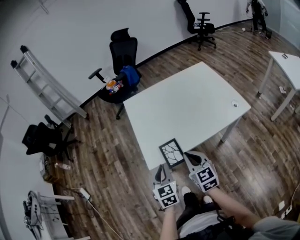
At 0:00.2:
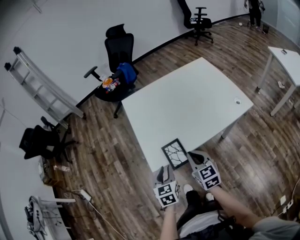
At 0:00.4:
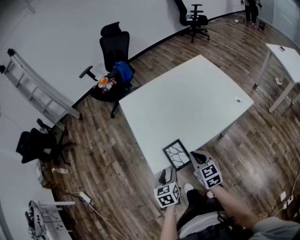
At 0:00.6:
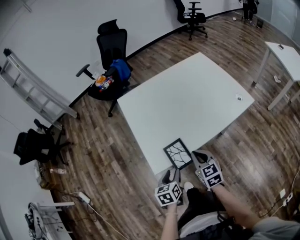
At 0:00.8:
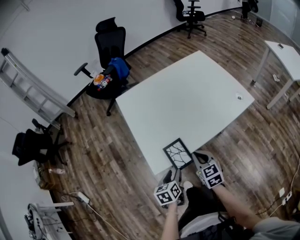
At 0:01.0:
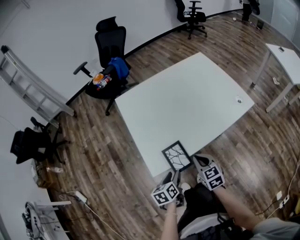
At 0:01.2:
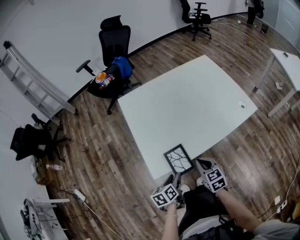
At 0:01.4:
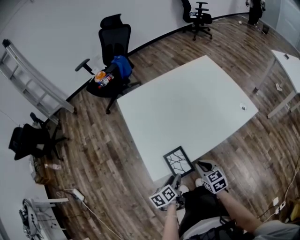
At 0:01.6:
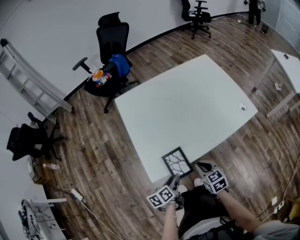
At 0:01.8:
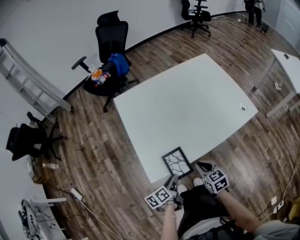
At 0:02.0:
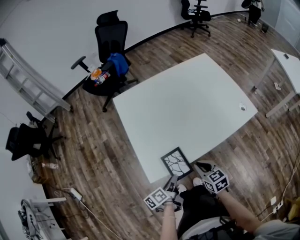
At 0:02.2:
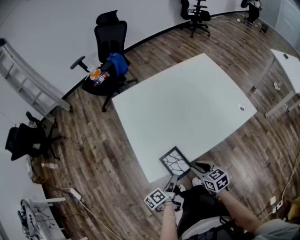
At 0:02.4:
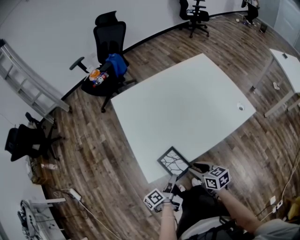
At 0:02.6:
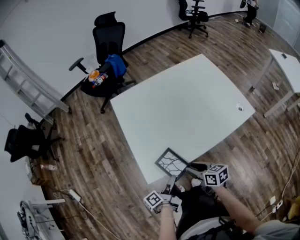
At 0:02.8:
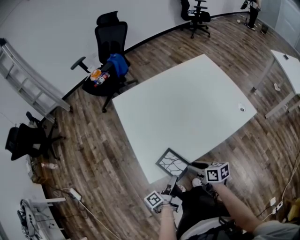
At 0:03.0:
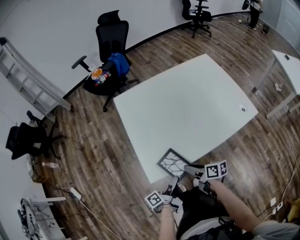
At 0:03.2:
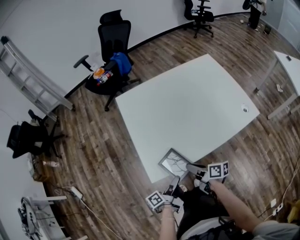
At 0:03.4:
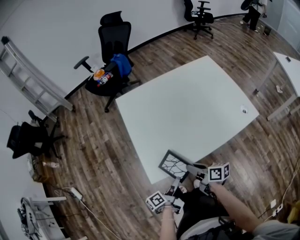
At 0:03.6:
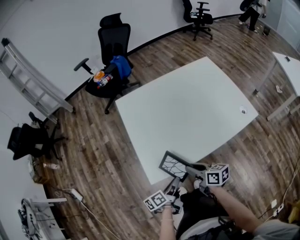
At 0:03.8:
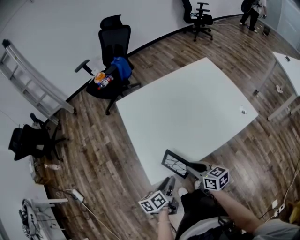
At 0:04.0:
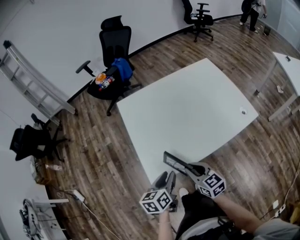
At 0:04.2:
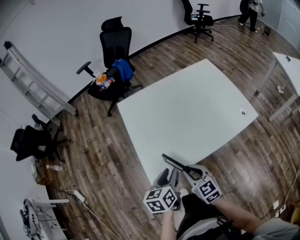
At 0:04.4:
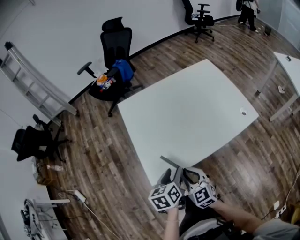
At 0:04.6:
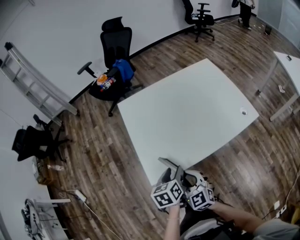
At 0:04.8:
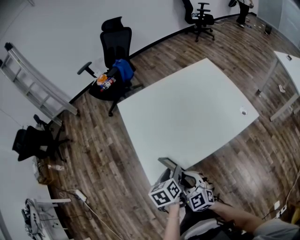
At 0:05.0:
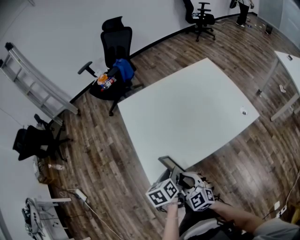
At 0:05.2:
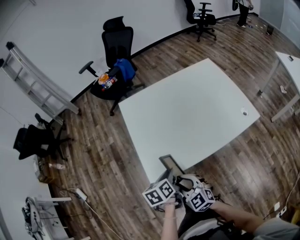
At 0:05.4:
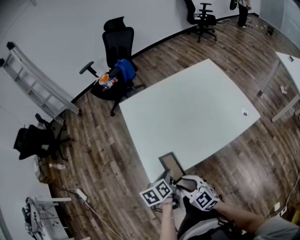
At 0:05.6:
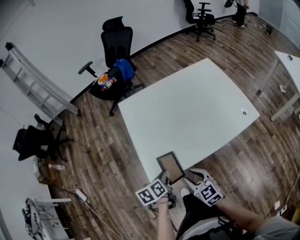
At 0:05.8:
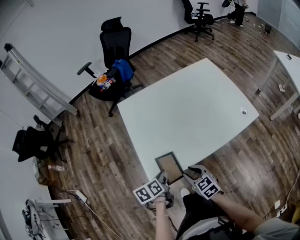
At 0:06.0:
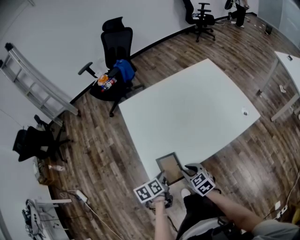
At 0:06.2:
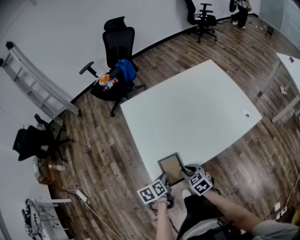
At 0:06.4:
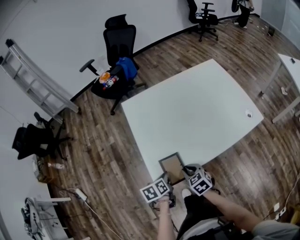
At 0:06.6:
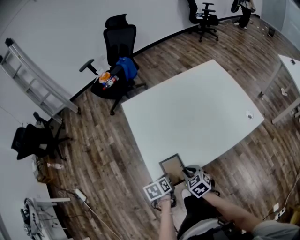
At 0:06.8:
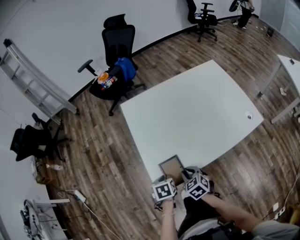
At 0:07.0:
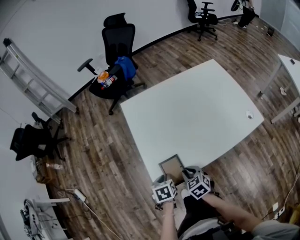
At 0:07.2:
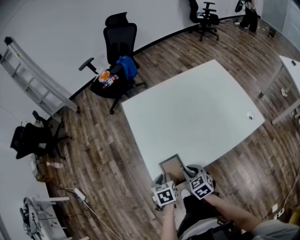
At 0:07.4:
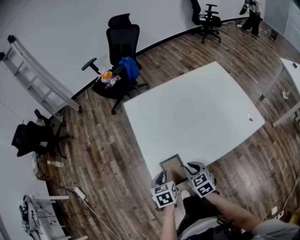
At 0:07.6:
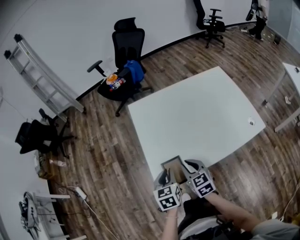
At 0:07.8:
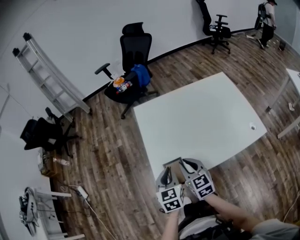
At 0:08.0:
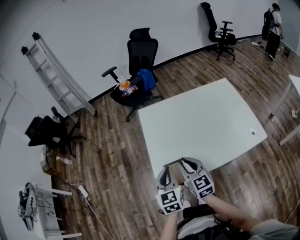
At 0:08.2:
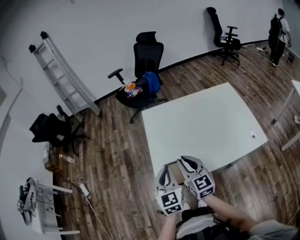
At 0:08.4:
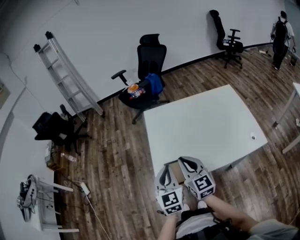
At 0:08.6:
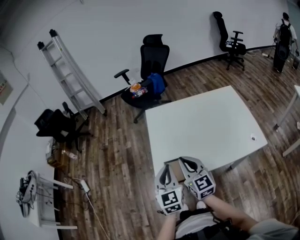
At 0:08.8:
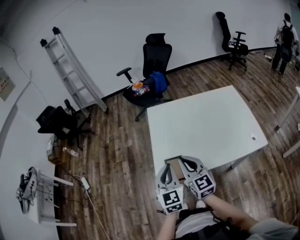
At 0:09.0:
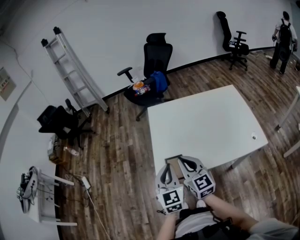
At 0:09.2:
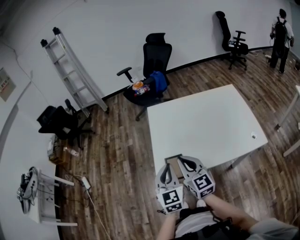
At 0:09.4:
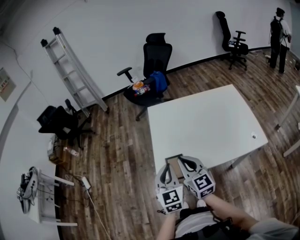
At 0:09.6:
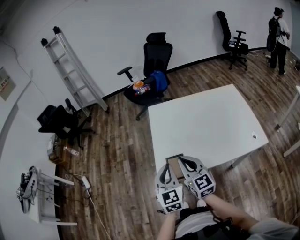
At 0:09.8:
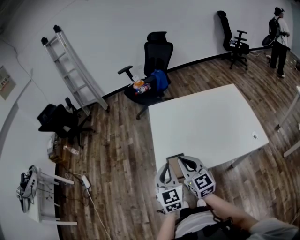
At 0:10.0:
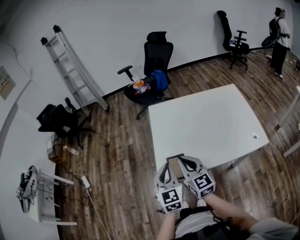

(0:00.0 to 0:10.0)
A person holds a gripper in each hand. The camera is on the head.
0:00.0 - 0:01.4: Both grippers move downward, about 15 cm. The left gripper rolls counterclockwise, seen from behind, by about 50 degrees, and opens. Meanwhile the right gripper swivels approximately 20 degrees.
0:01.4 - 0:02.8: The right gripper changes its angle by about 40 degrees, and opens its fingers, while the left gripper points its fingers approximately 30 degrees further upward, and closes.
0:02.8 - 0:04.2: The right gripper goes about 10 cm upward, and rotates around the line of its fingers by about 40 degrees, counterclockwise from behind. The left gripper is displaced upward and forward by approximately 10 cm, and rolls clockwise, seen from behind, by approximately 60 degrees.
0:04.2 - 0:05.8: The two grippers go about 5 cm downward. The left gripper rotates some 20 degrees.
0:05.8 - 0:07.2: The left gripper shifts by about 5 cm, and rotates some 30 degrees; the right gripper heads forward, covering some 5 cm.
0:07.2 - 0:08.6: Both grippers travel together upward, about 20 cm. The right gripper tips its fingers upward by some 40 degrees. Meanwhile the left gripper tips its fingers upward by about 50 degrees.
0:08.6 - 0:10.0: The grippers make only small movements.

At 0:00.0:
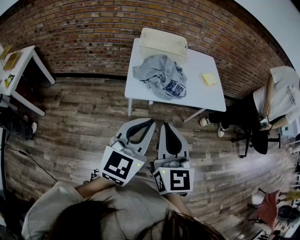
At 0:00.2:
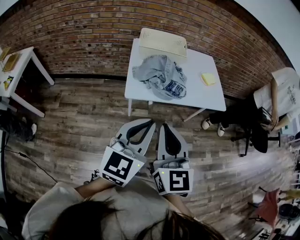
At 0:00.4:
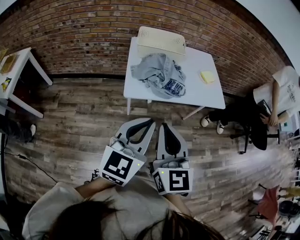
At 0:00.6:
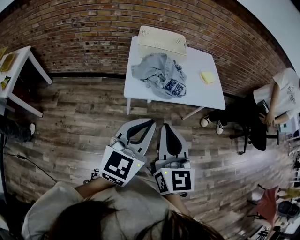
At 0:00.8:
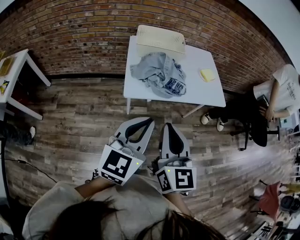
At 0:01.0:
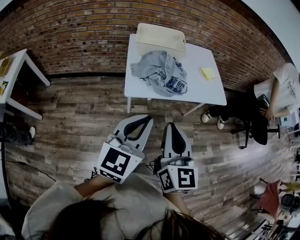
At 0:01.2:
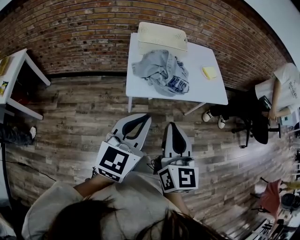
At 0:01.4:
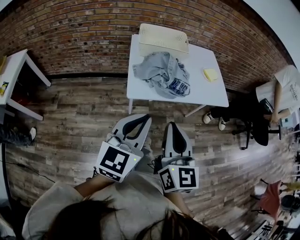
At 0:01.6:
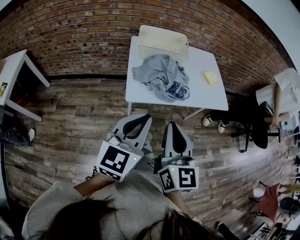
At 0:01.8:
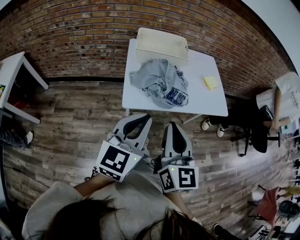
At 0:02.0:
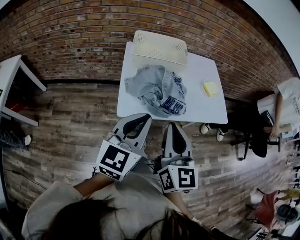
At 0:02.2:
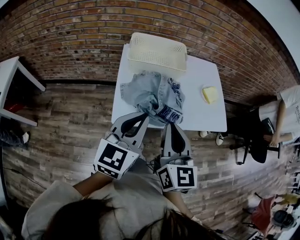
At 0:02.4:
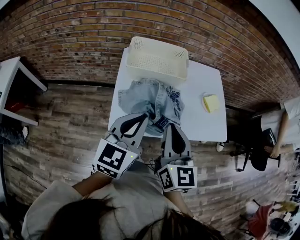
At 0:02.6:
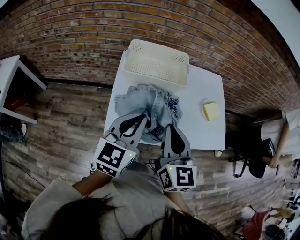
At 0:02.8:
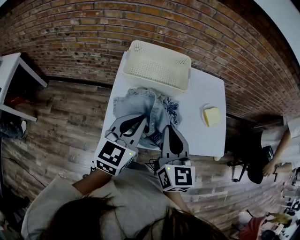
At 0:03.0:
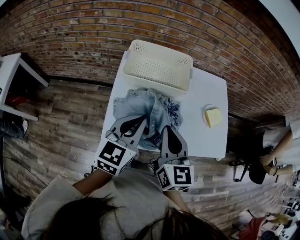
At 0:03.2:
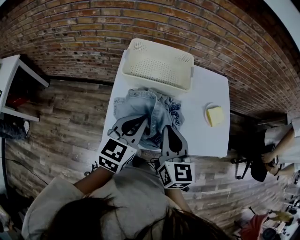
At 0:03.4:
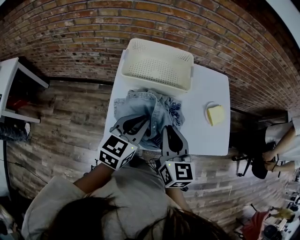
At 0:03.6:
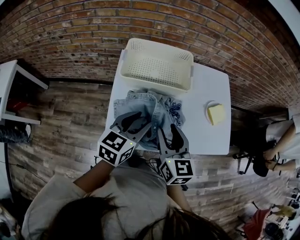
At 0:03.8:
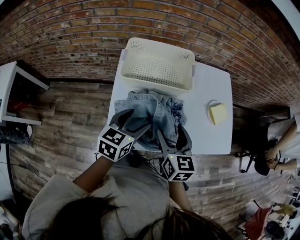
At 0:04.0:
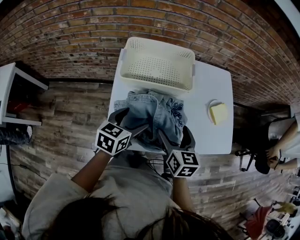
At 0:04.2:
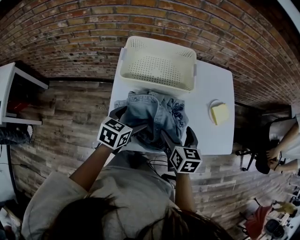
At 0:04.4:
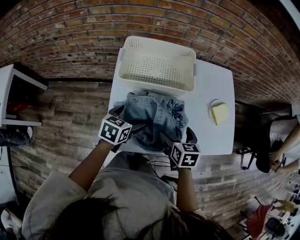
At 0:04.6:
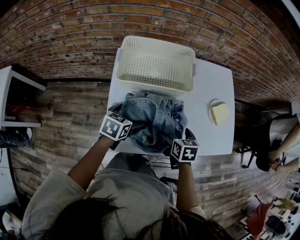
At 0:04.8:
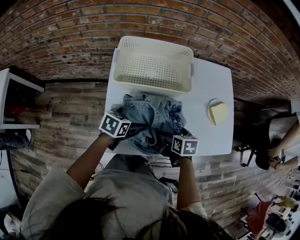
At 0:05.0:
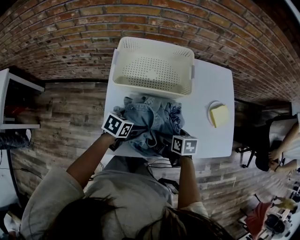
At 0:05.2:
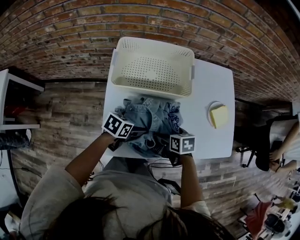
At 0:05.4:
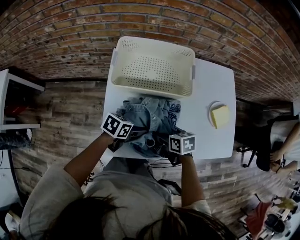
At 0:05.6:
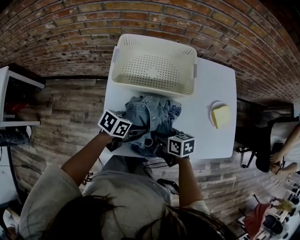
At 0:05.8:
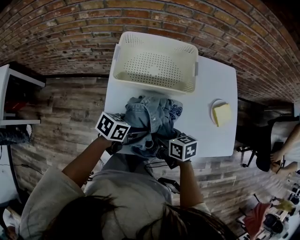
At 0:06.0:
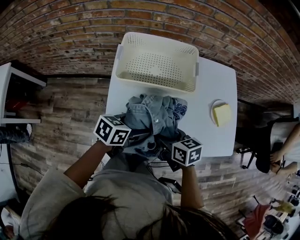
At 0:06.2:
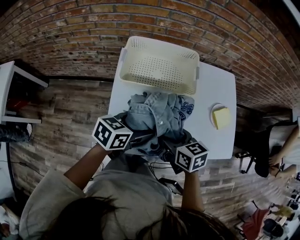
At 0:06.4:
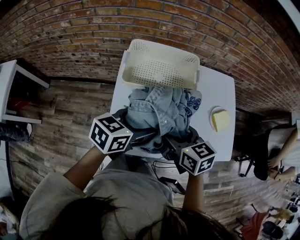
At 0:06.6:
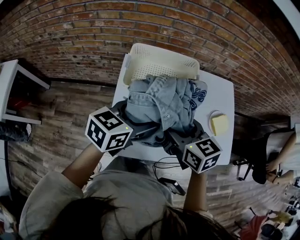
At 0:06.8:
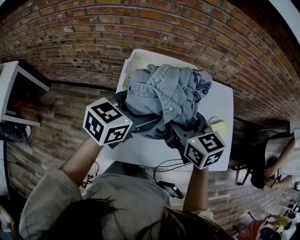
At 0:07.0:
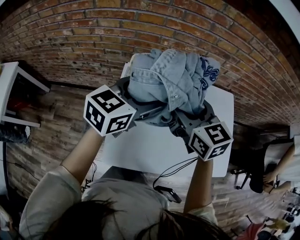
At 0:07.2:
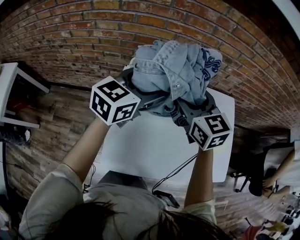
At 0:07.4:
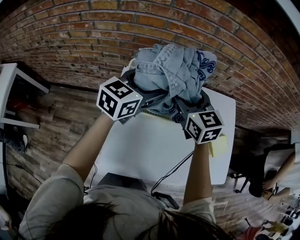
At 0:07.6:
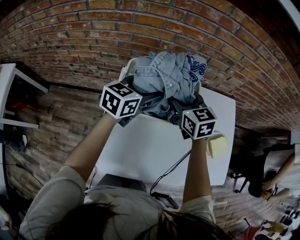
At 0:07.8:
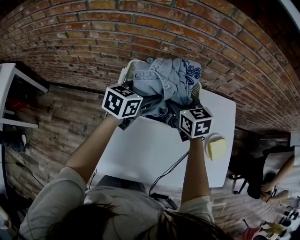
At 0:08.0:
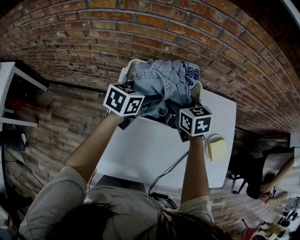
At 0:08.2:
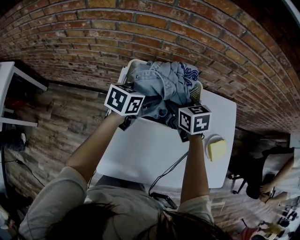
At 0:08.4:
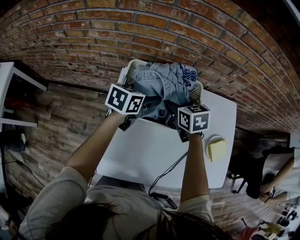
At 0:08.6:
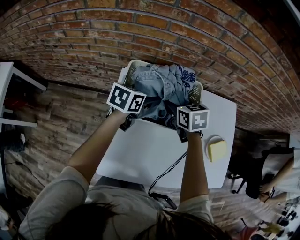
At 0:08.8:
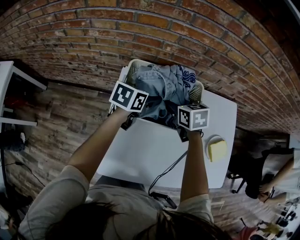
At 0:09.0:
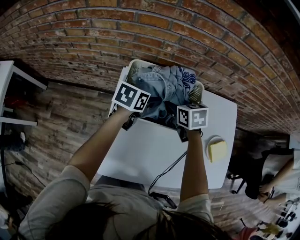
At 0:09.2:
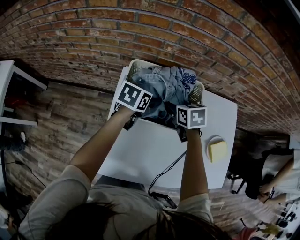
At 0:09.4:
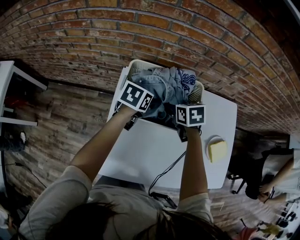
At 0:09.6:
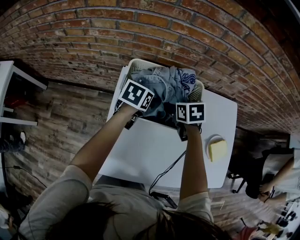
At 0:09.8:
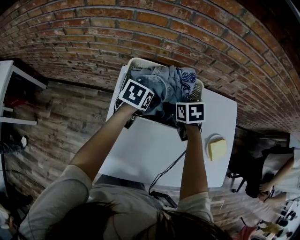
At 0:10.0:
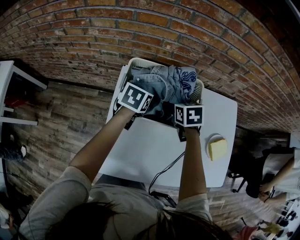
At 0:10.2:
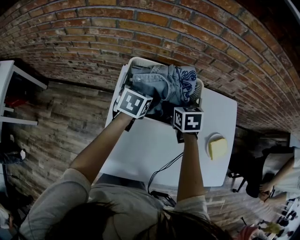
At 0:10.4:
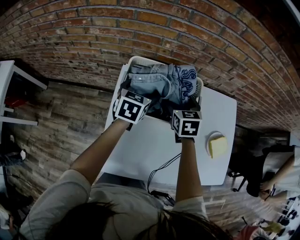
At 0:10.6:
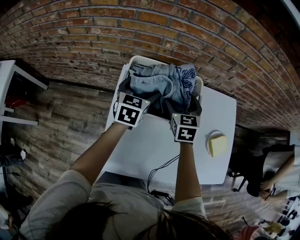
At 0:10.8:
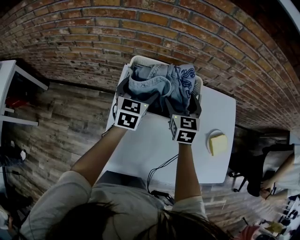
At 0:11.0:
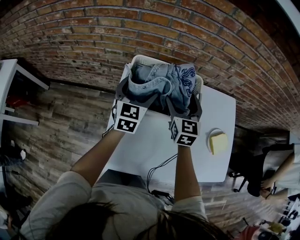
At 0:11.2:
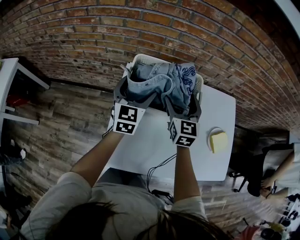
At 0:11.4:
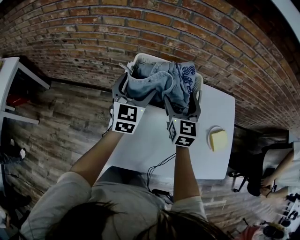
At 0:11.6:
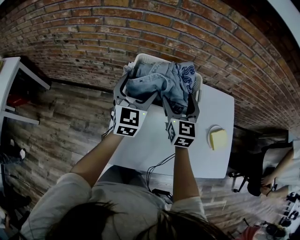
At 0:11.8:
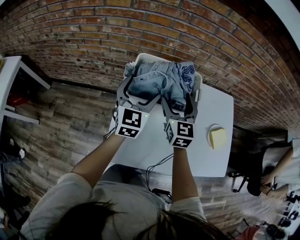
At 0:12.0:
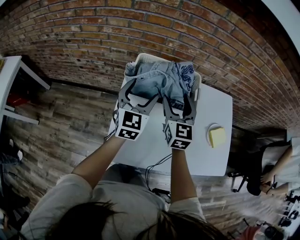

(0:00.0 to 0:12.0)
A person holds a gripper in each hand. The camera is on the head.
0:00.0 - 0:01.6: The right gripper changes place by about 5 cm, while the left gripper shifts some 5 cm forward and to the left.
0:01.6 - 0:03.0: The two grippers go about 30 cm forward.
0:03.0 - 0:04.4: The two grippers go roughly 20 cm downward. The left gripper swivels some 30 degrees, and opens; the right gripper tips its fingers downward by roughly 30 degrees, and opens up.
0:04.4 - 0:06.0: The left gripper travels downward and back again, about 5 cm each way, and swivels about 20 degrees; the right gripper moves about 10 cm downward and comes back, changes its angle by approximately 30 degrees, and closes.
0:06.0 - 0:07.6: The grippers both shift forward and upward by roughly 30 cm. The left gripper rotates about 30 degrees. Meanwhile the right gripper changes its angle by approximately 30 degrees.
0:07.6 - 0:09.0: Both grippers move downward, some 10 cm. The left gripper turns by some 20 degrees, while the right gripper swivels some 20 degrees.
0:09.0 - 0:10.4: The left gripper changes its angle by about 20 degrees.
0:10.4 - 0:12.0: The right gripper goes roughly 15 cm upward and backward, and changes its angle by about 30 degrees; the left gripper shifts roughly 15 cm backward and upward, and rotates some 30 degrees.

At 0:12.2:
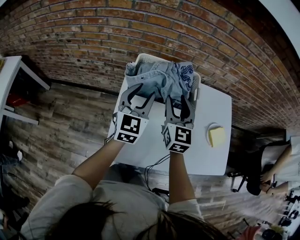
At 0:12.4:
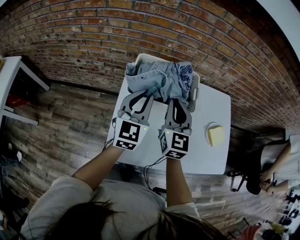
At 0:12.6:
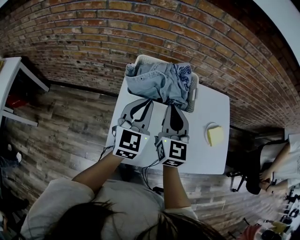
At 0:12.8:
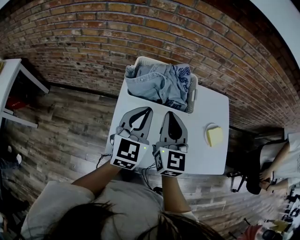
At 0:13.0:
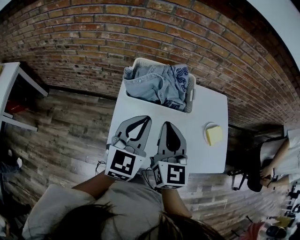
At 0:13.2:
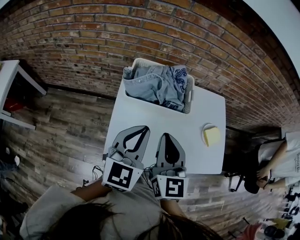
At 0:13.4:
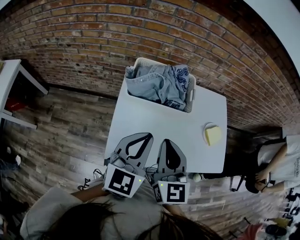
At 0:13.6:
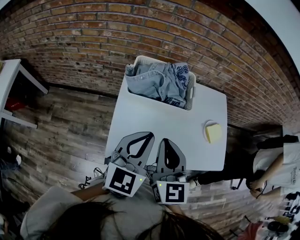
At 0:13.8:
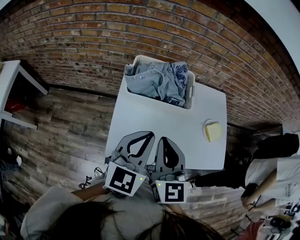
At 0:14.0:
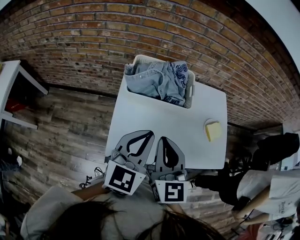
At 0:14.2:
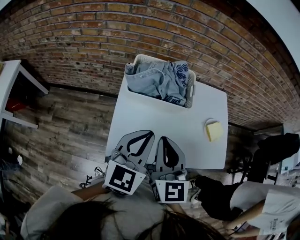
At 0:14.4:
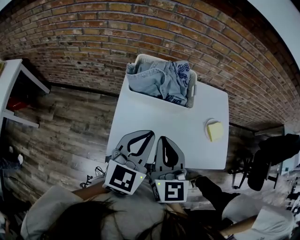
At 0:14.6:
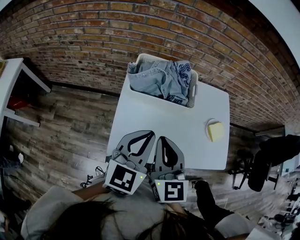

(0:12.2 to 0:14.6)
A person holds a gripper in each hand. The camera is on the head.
0:12.2 - 0:13.4: The two grippers go approximately 20 cm backward. The right gripper closes its fingers.
0:13.4 - 0:14.6: The grippers stay close to where they were, moving slightly.
